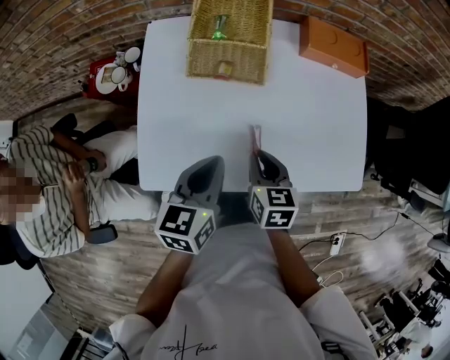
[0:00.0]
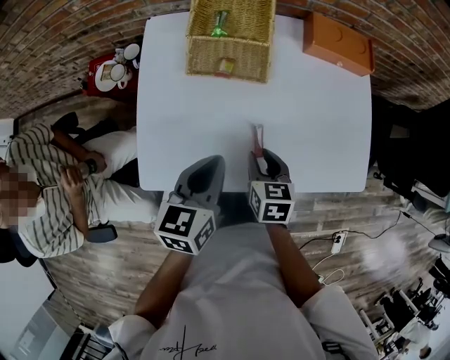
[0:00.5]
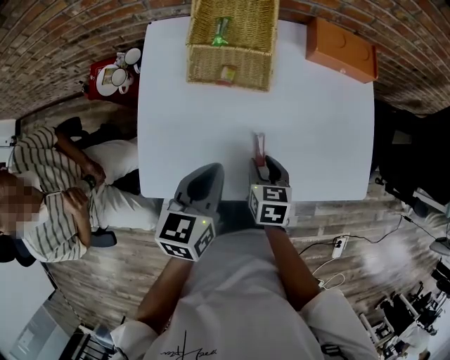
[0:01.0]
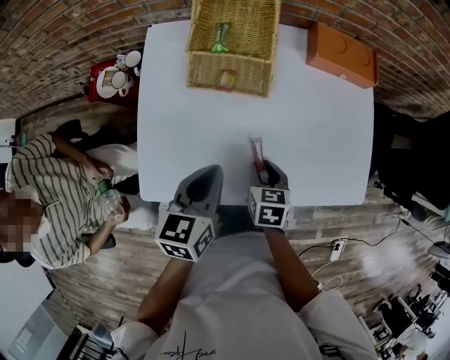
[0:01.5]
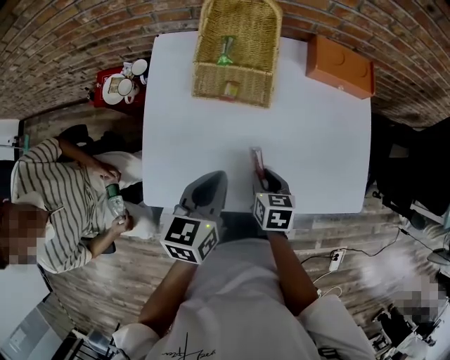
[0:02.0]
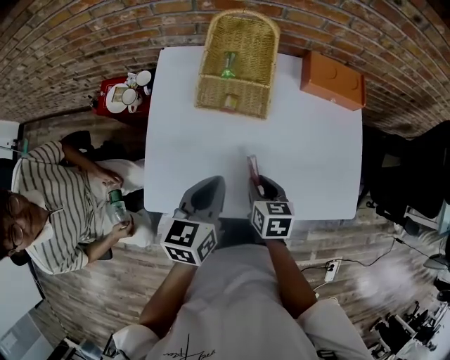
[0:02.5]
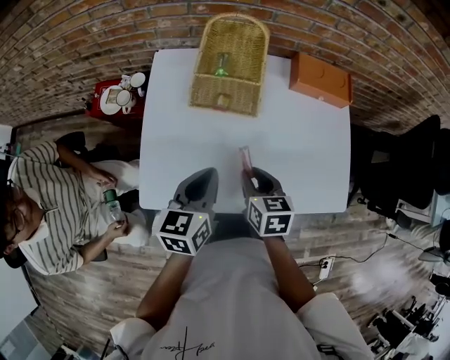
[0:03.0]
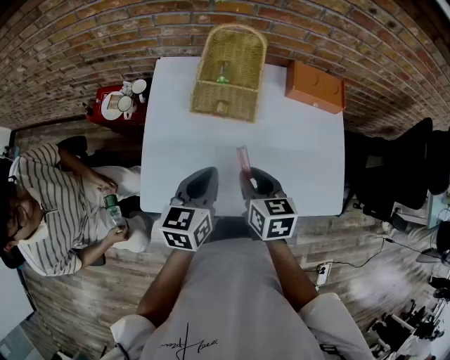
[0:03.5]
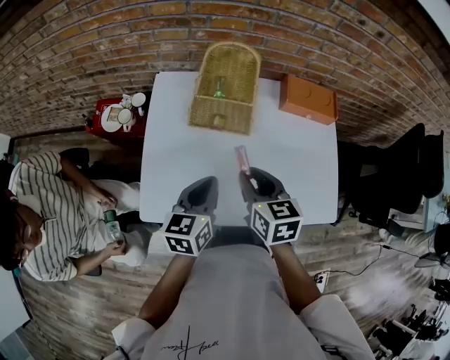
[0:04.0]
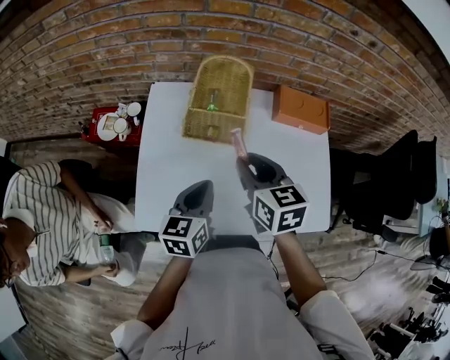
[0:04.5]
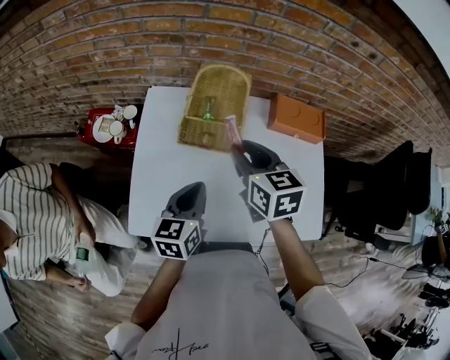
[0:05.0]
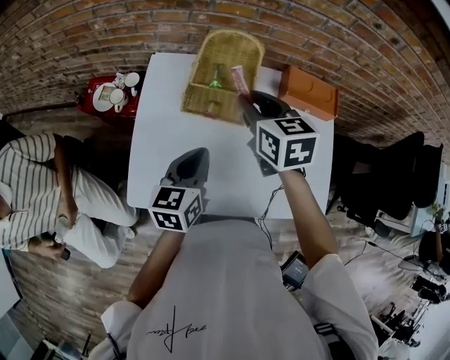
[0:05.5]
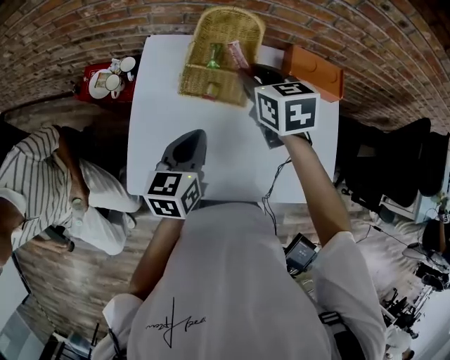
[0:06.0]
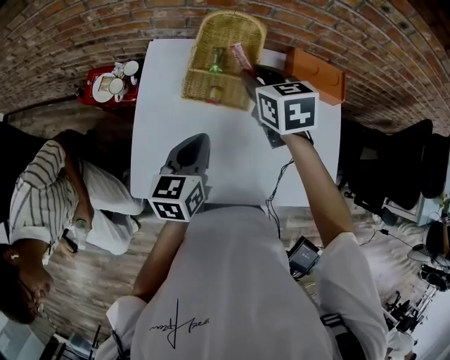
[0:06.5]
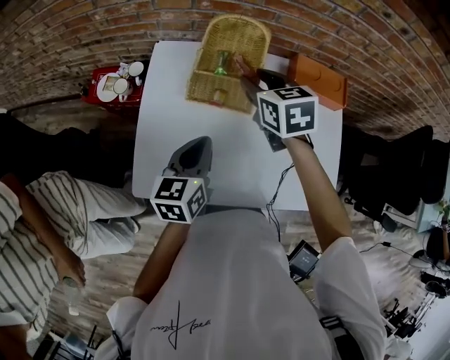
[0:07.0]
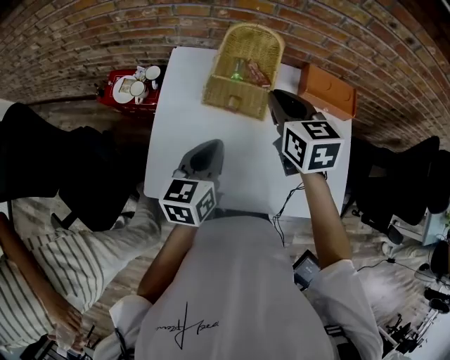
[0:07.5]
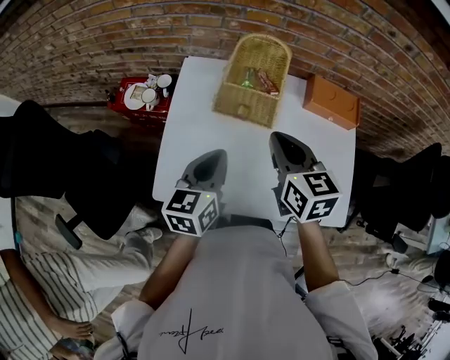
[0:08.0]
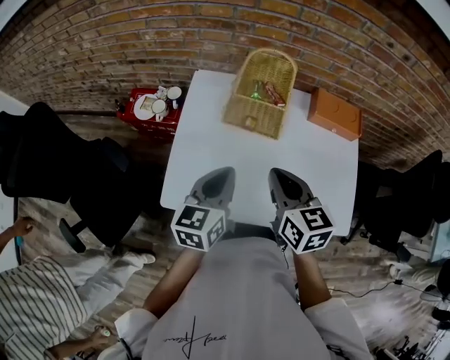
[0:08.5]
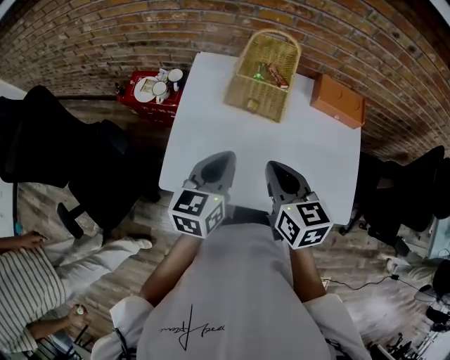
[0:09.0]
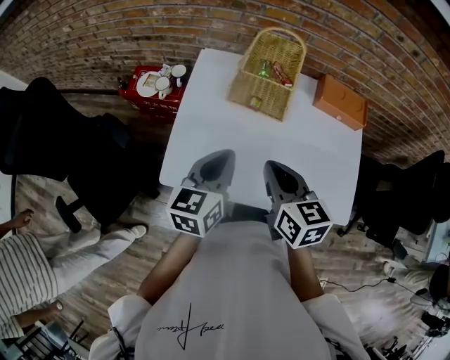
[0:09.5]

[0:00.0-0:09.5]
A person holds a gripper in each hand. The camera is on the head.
0:00.0 to 0:02.0: The right gripper is displaced downward by roughly 5 cm, and opens.
0:02.0 to 0:04.0: The right gripper goes roughly 20 cm upward, and swivels roughly 20 degrees.
0:04.0 to 0:05.5: The right gripper travels forward and upward by some 15 cm, while the left gripper heads forward, covering approximately 5 cm.
0:05.5 to 0:07.5: There are only small adjustments of the grippers.
0:07.5 to 0:09.5: The left gripper is displaced backward by roughly 5 cm; the right gripper goes about 20 cm backward.

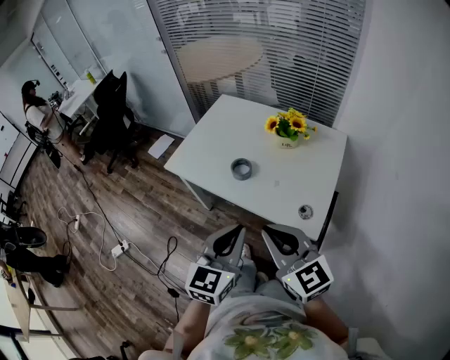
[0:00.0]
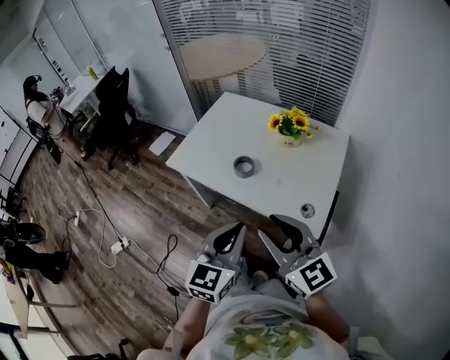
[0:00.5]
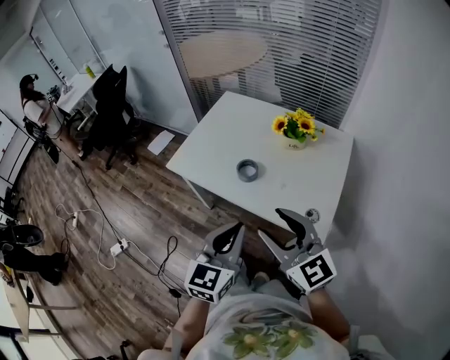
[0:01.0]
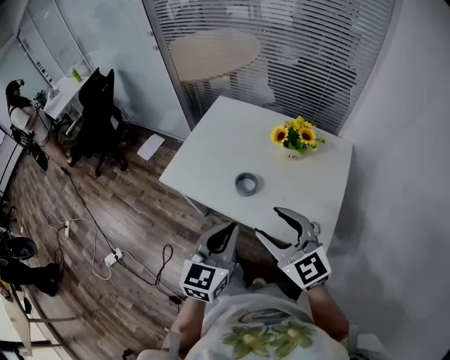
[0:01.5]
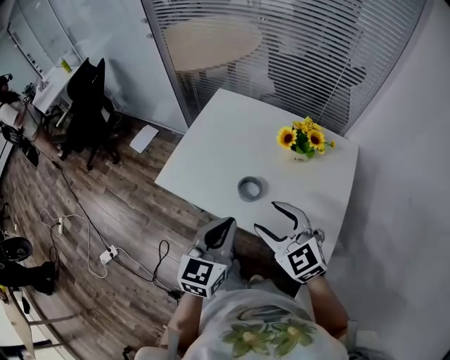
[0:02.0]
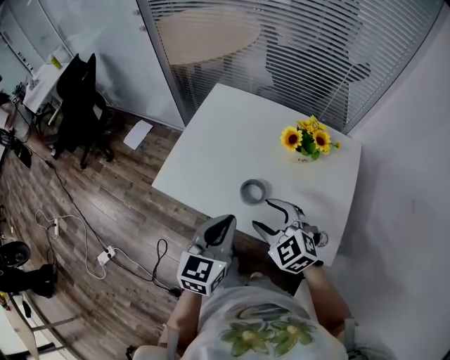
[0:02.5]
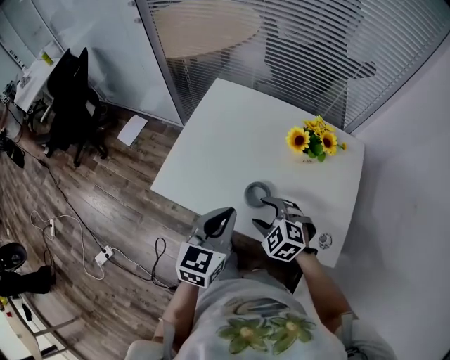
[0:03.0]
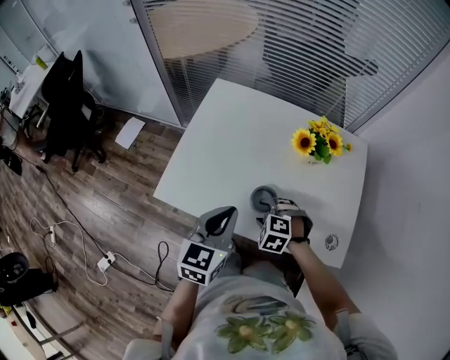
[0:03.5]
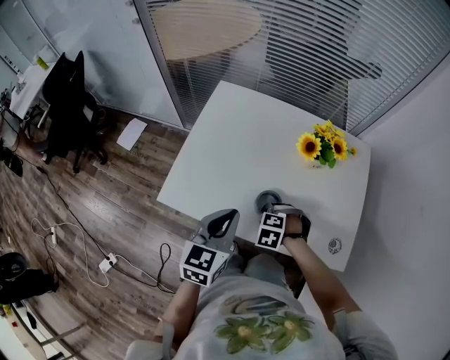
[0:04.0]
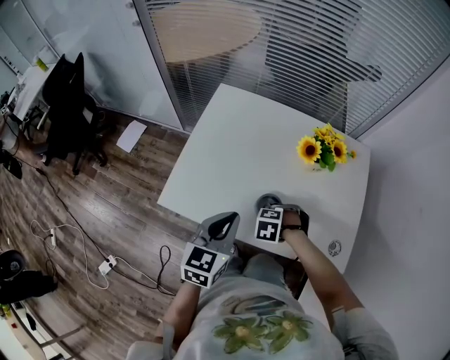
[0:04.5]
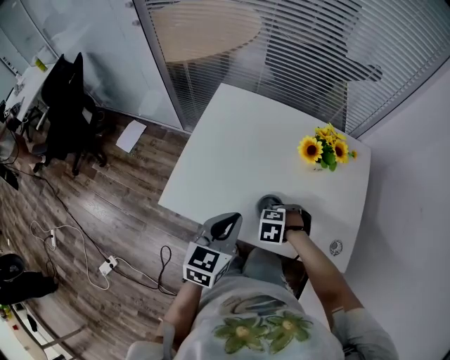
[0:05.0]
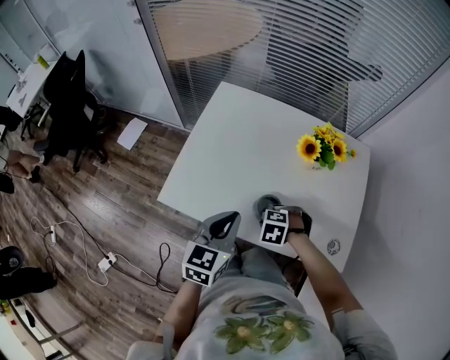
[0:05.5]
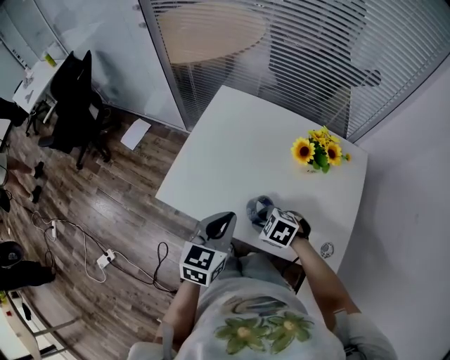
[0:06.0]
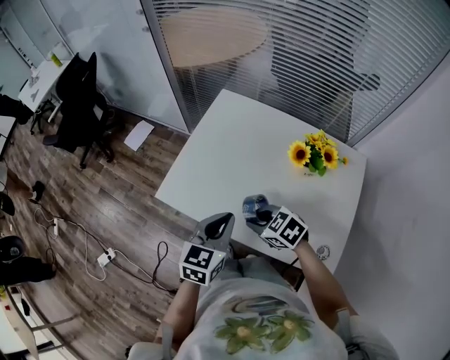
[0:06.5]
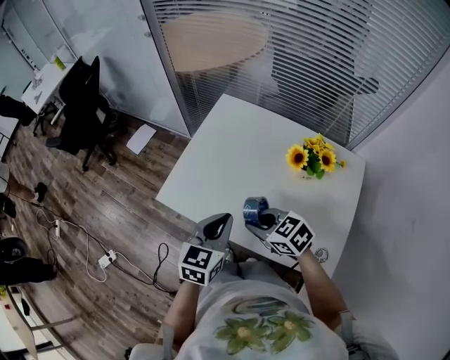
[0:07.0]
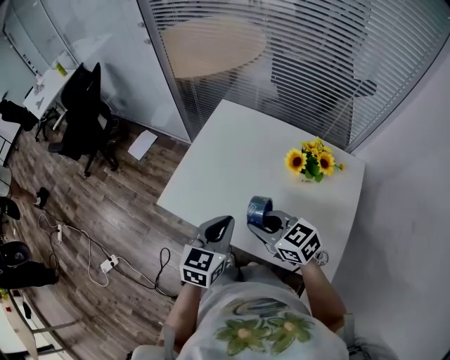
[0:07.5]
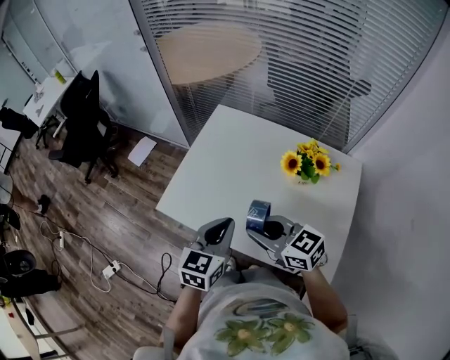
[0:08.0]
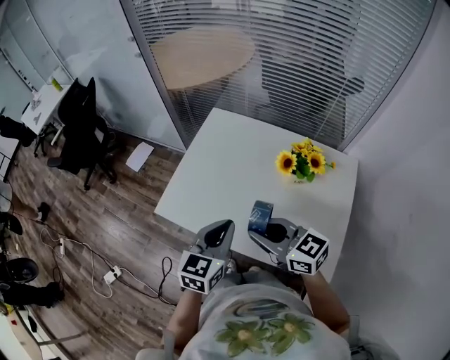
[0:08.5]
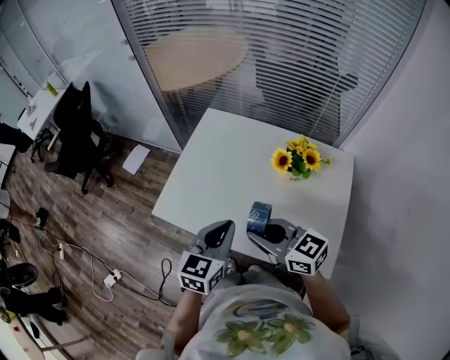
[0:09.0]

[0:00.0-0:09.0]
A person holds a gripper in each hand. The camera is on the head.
0:00.0 to 0:02.0: The right gripper heads forward and downward, covering approximately 20 cm, turns by about 20 degrees, and opens its fingers. The left gripper travels forward by some 20 cm.
0:02.0 to 0:04.5: The left gripper ends up some 15 cm from where it was; the right gripper goes approximately 25 cm downward, tips its fingers downward by approximately 60 degrees, and closes.
0:04.5 to 0:07.0: The right gripper travels upward by approximately 15 cm, and tilts its fingers approximately 50 degrees upward.
0:07.0 to 0:09.0: The right gripper goes roughly 10 cm upward, and turns by roughly 30 degrees; the left gripper changes place by about 5 cm.

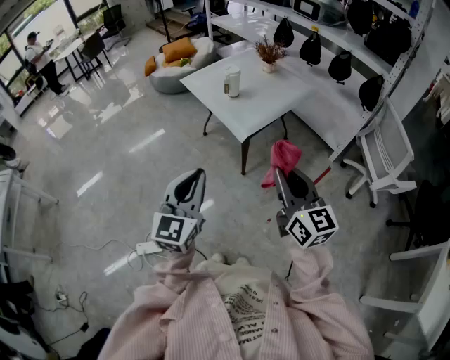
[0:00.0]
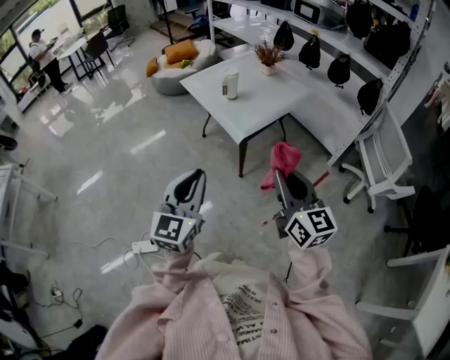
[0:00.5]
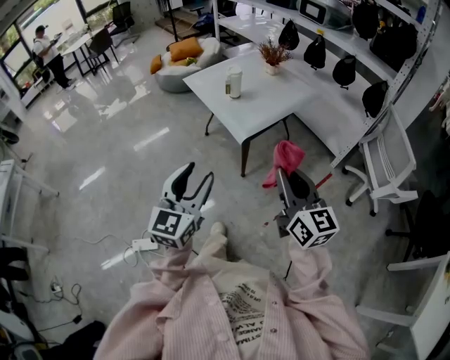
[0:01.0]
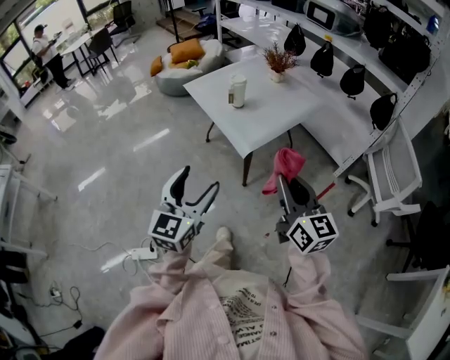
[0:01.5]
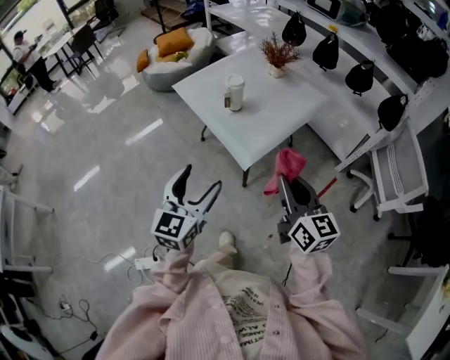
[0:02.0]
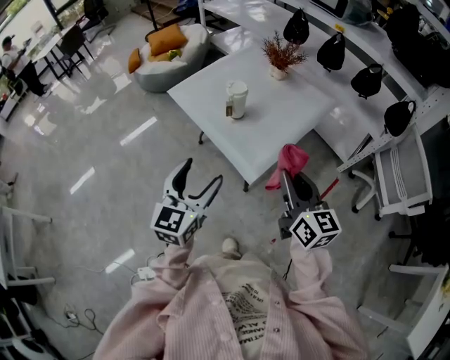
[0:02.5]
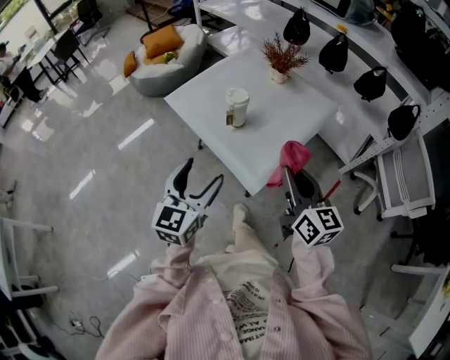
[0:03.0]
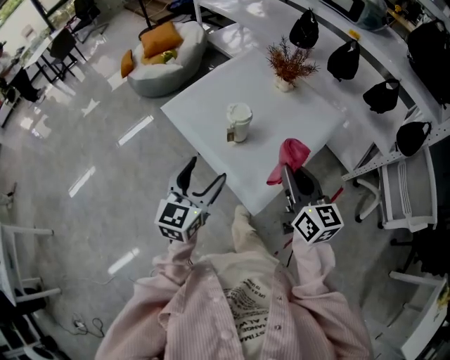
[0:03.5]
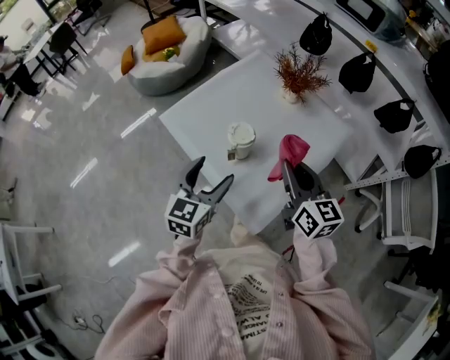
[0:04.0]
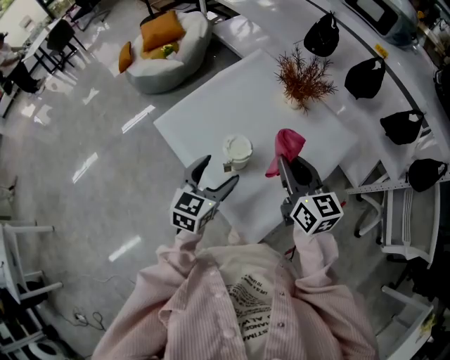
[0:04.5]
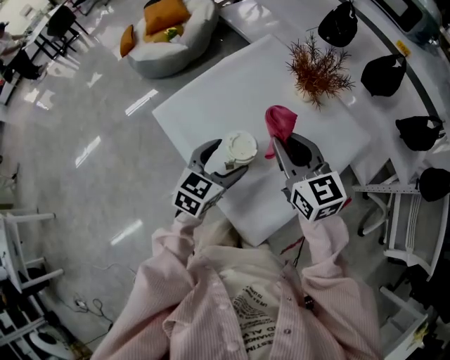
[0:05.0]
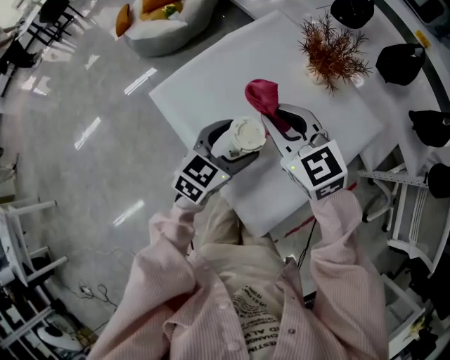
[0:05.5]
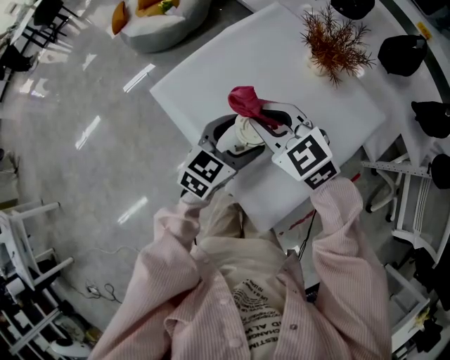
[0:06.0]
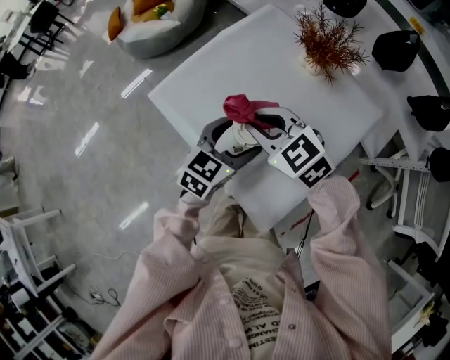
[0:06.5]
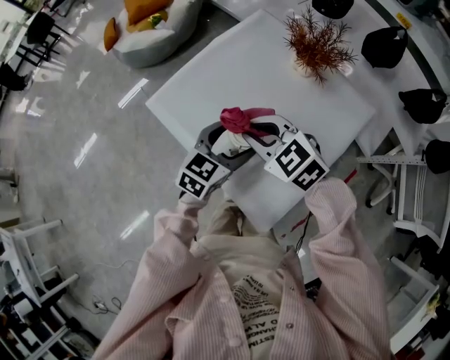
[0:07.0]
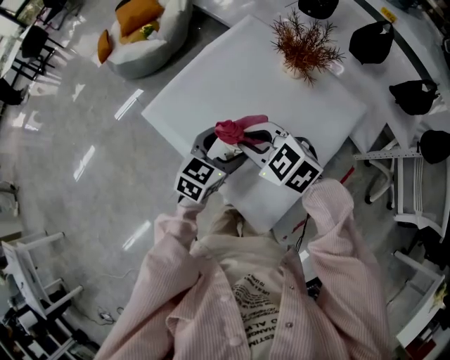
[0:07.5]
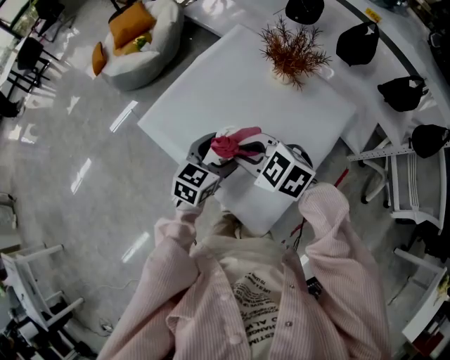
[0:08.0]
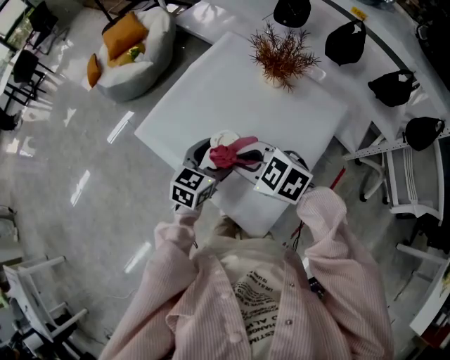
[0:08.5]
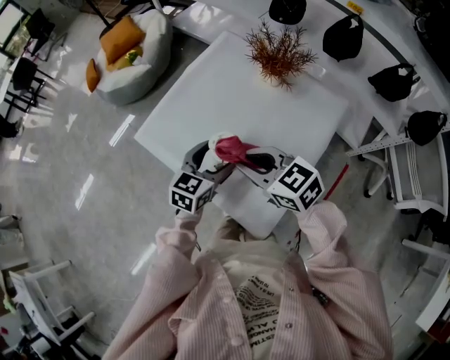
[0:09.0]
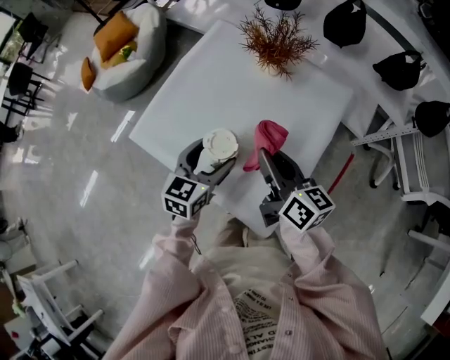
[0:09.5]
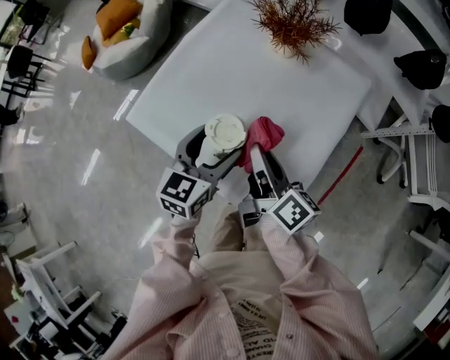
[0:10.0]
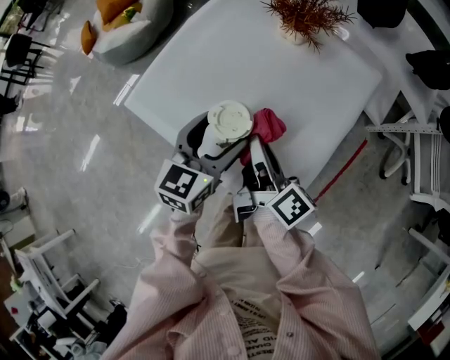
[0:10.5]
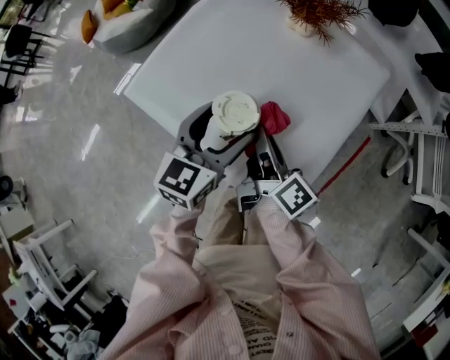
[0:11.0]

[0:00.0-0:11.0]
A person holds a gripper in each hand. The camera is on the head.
0:00.0 to 0:02.0: The two grippers go some 20 cm forward. The left gripper opens.
0:02.0 to 0:03.5: Both grippers travel together forward, roughly 25 cm.
0:03.5 to 0:05.5: The left gripper moves forward and downward, some 25 cm, and rotates approximately 20 degrees, while the right gripper moves forward and to the left, approximately 25 cm, and swivels some 40 degrees.
0:05.5 to 0:07.5: The right gripper shifts approximately 5 cm backward, and turns by some 20 degrees.
0:07.5 to 0:09.0: The right gripper rotates roughly 30 degrees.
0:09.0 to 0:11.0: The right gripper moves downward, approximately 10 cm, and rotates some 80 degrees.
